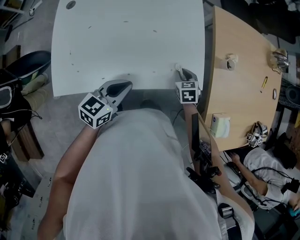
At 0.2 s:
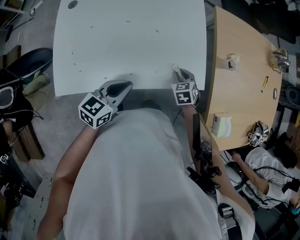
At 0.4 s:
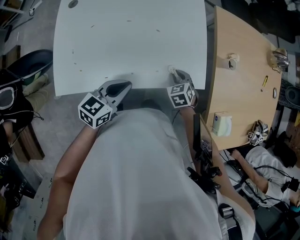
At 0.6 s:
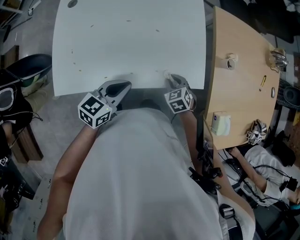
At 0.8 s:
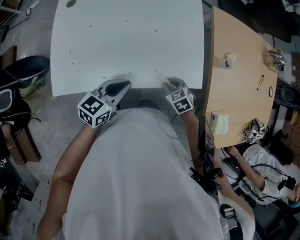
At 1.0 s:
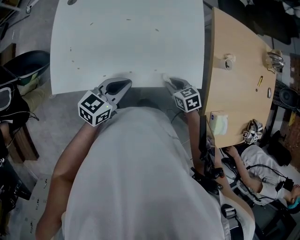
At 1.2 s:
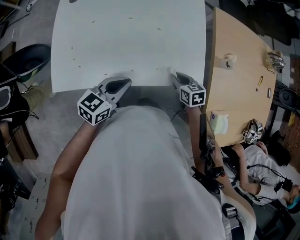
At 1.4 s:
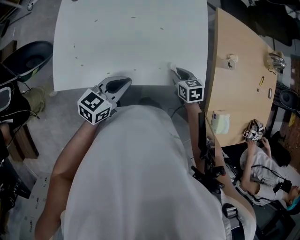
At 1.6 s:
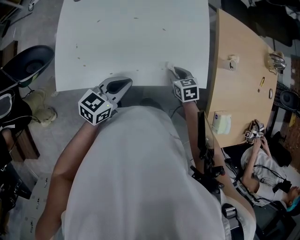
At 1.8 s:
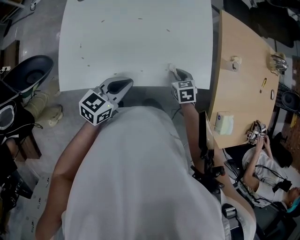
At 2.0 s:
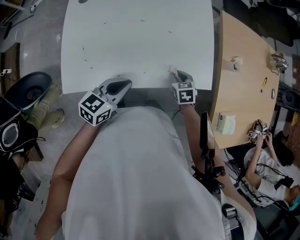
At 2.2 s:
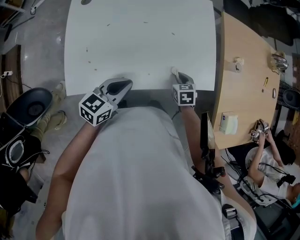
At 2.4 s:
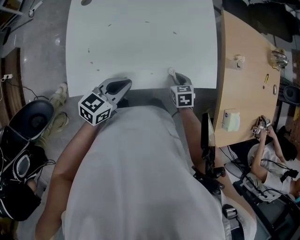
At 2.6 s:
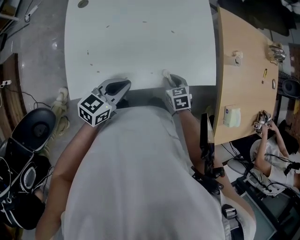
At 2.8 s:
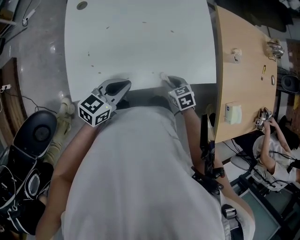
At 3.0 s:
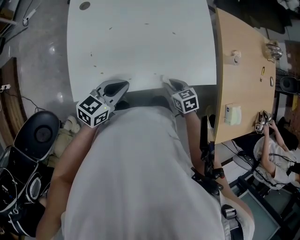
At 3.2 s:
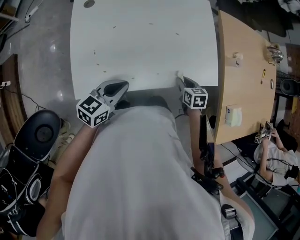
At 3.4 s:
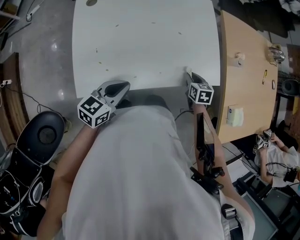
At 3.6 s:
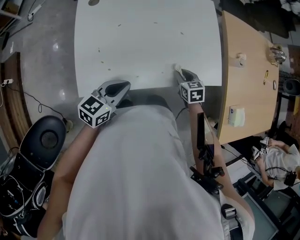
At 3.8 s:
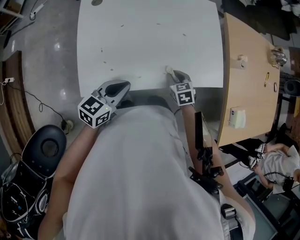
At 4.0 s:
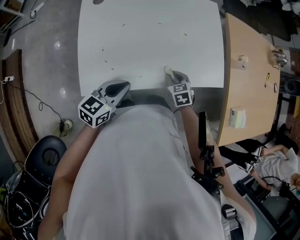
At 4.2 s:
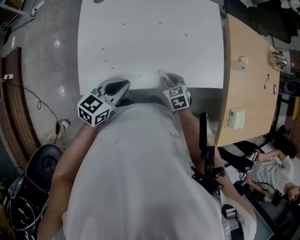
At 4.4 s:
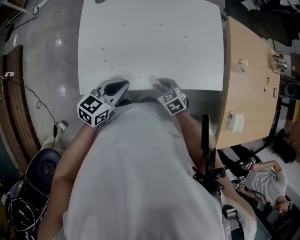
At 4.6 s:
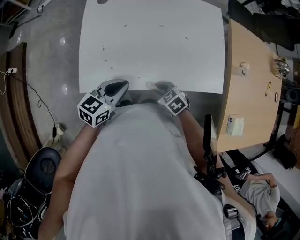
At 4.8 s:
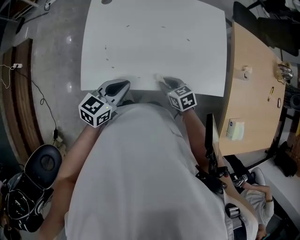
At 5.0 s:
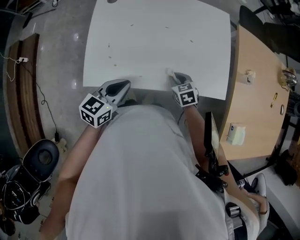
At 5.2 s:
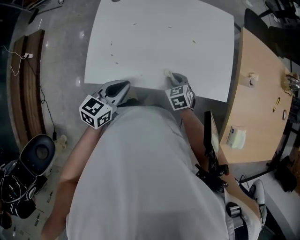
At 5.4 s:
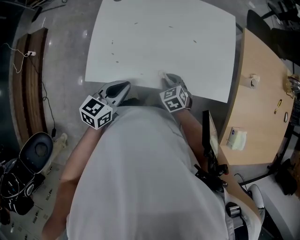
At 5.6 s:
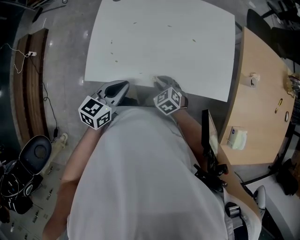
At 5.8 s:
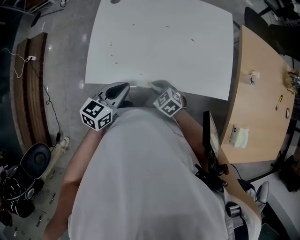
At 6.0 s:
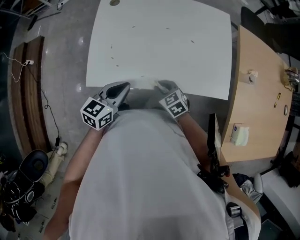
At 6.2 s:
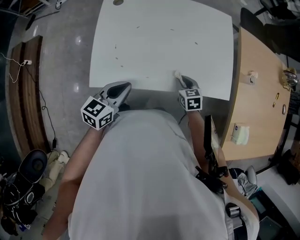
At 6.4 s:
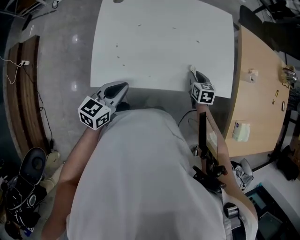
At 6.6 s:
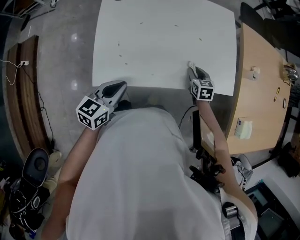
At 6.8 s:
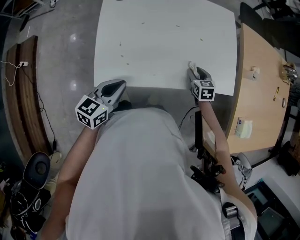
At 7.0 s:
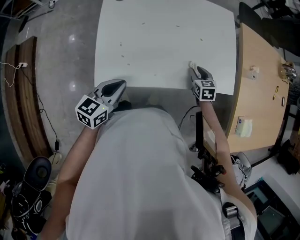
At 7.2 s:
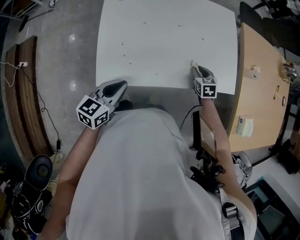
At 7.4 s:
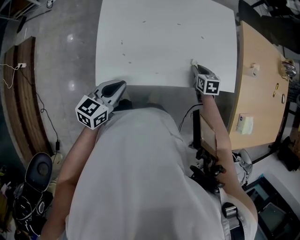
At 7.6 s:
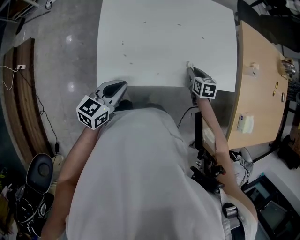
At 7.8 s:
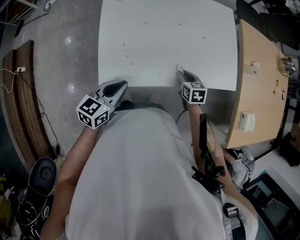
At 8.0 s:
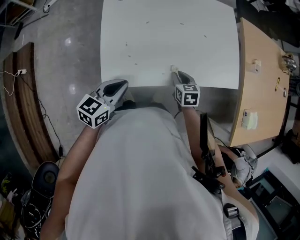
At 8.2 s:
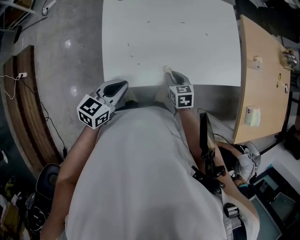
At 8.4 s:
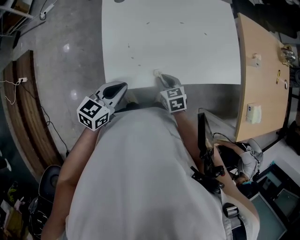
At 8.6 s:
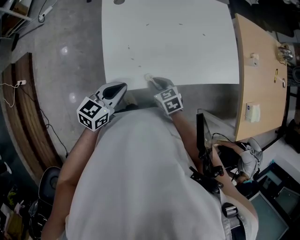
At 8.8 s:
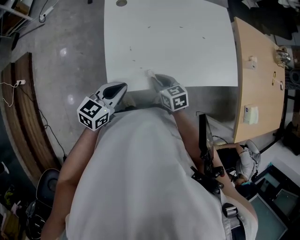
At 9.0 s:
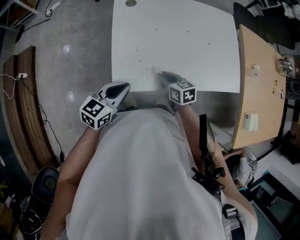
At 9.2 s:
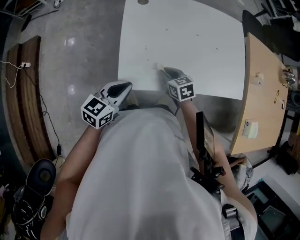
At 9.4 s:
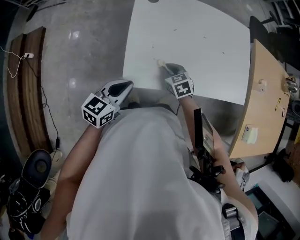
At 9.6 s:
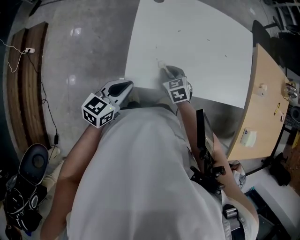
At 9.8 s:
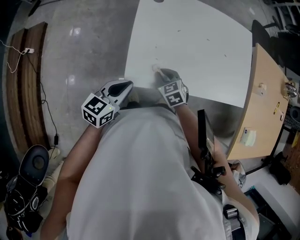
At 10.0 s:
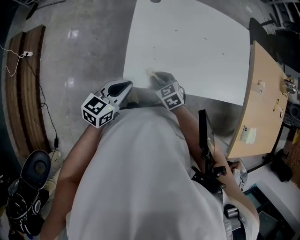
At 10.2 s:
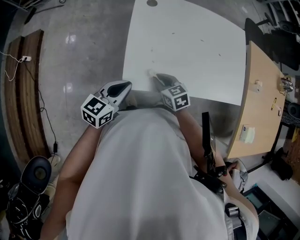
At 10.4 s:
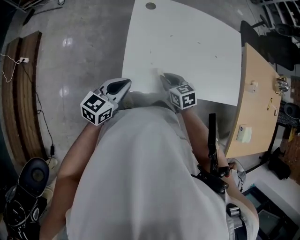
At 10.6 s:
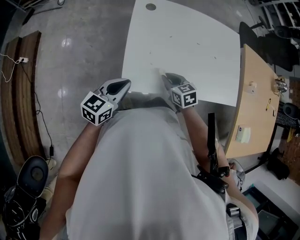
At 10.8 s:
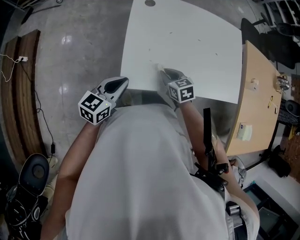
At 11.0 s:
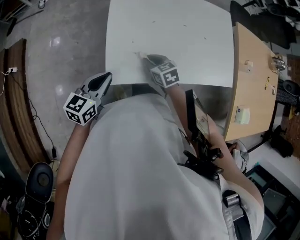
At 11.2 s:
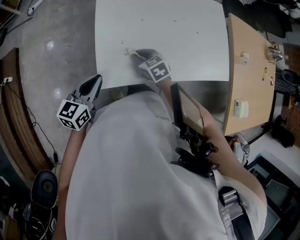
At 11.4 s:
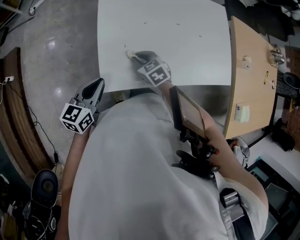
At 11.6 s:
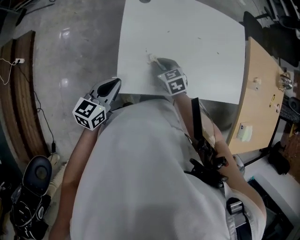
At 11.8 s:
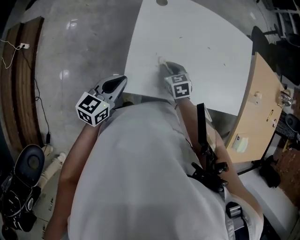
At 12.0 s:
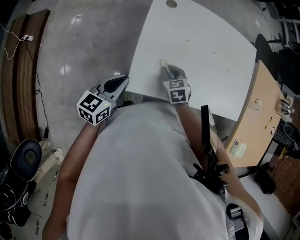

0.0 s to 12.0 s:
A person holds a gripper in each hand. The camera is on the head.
0.0 to 1.6 s: The right gripper travels to the left by approximately 5 cm.
1.6 to 3.0 s: The right gripper is displaced backward and to the left by approximately 10 cm, while the left gripper moves to the left, about 10 cm.
3.0 to 4.4 s: The right gripper shifts roughly 10 cm to the left.
4.4 to 6.0 s: The right gripper moves some 5 cm to the right and comes back.
6.0 to 7.6 s: The left gripper moves roughly 10 cm. Meanwhile the right gripper moves about 15 cm, and turns by about 40 degrees.
7.6 to 9.0 s: The right gripper shifts roughly 20 cm to the left, and rotates about 20 degrees, while the left gripper is displaced to the left by roughly 5 cm.
10.4 to 12.0 s: The right gripper heads forward, covering approximately 5 cm.

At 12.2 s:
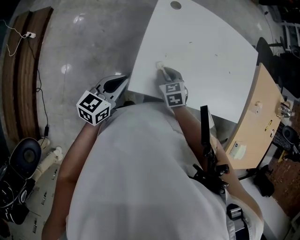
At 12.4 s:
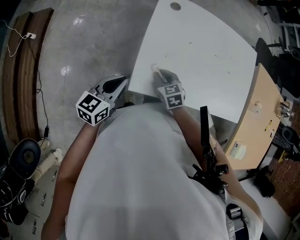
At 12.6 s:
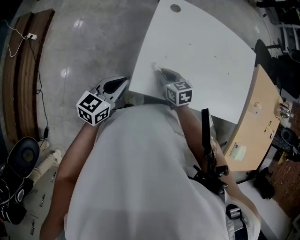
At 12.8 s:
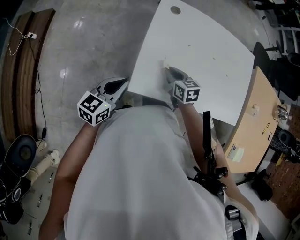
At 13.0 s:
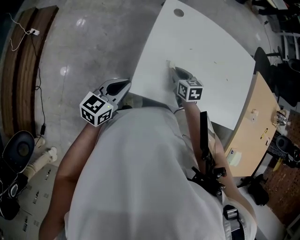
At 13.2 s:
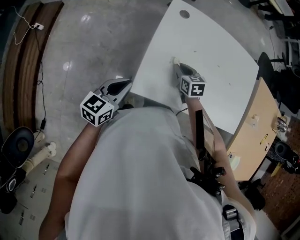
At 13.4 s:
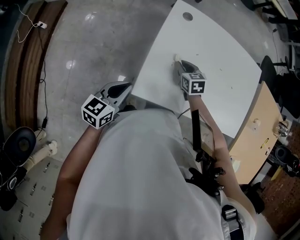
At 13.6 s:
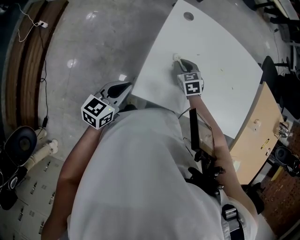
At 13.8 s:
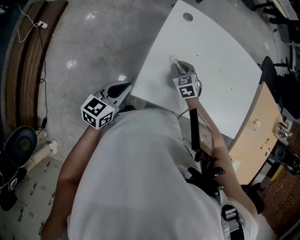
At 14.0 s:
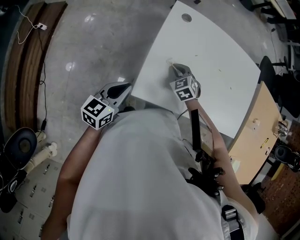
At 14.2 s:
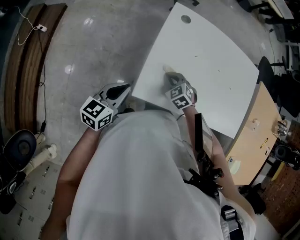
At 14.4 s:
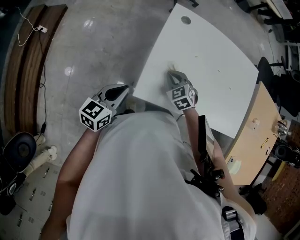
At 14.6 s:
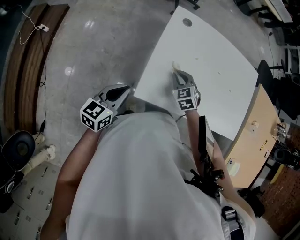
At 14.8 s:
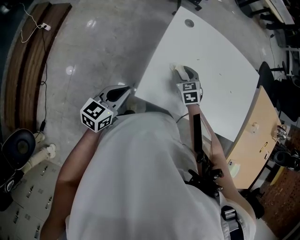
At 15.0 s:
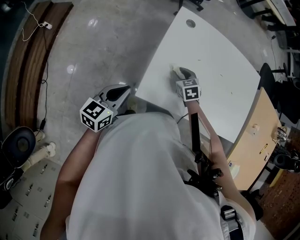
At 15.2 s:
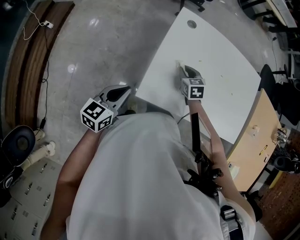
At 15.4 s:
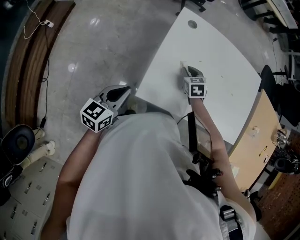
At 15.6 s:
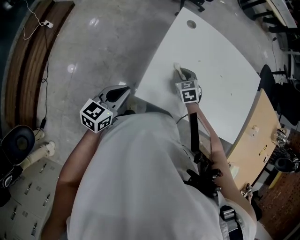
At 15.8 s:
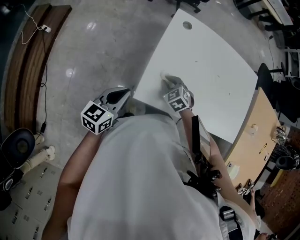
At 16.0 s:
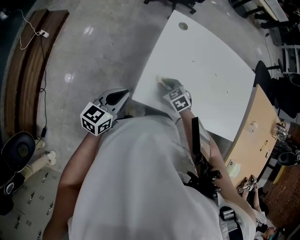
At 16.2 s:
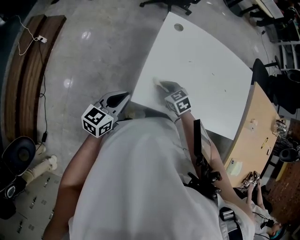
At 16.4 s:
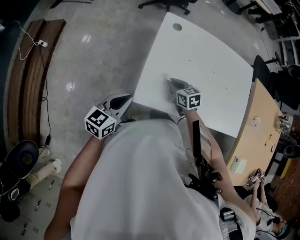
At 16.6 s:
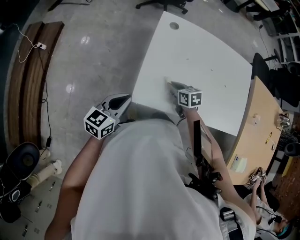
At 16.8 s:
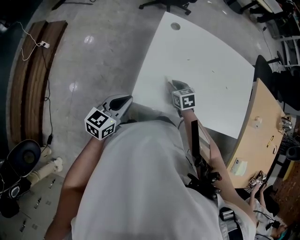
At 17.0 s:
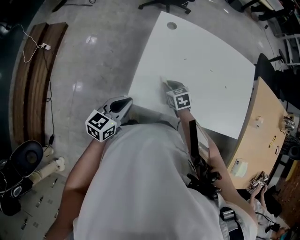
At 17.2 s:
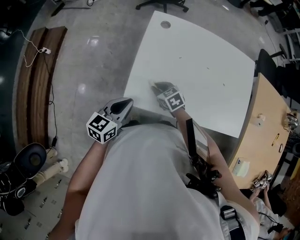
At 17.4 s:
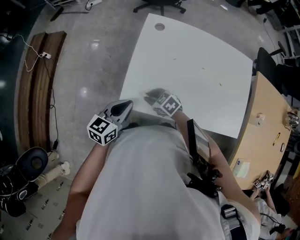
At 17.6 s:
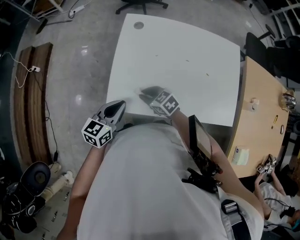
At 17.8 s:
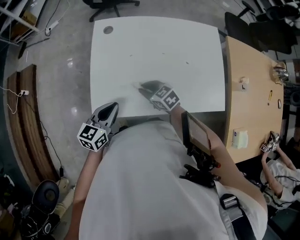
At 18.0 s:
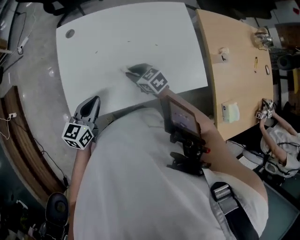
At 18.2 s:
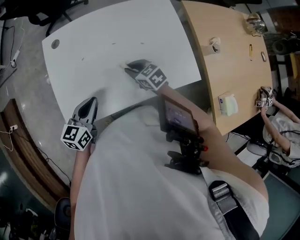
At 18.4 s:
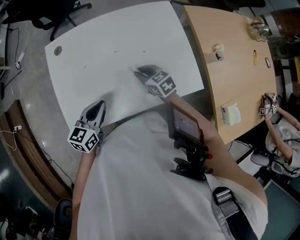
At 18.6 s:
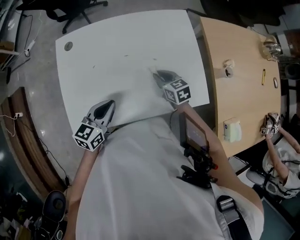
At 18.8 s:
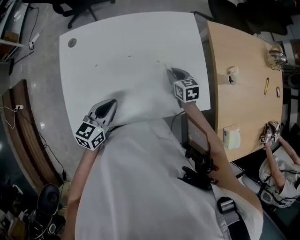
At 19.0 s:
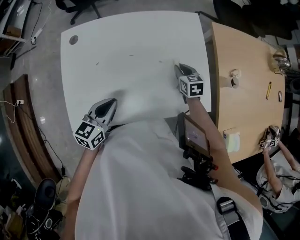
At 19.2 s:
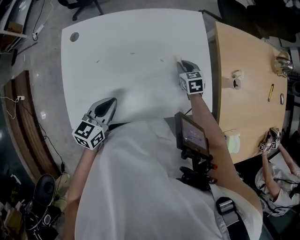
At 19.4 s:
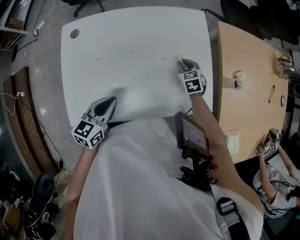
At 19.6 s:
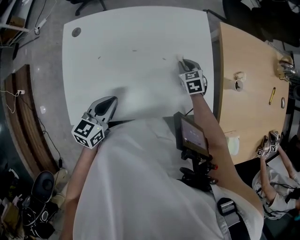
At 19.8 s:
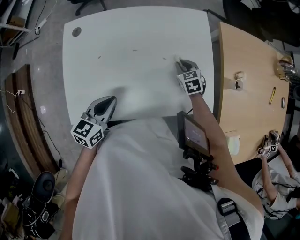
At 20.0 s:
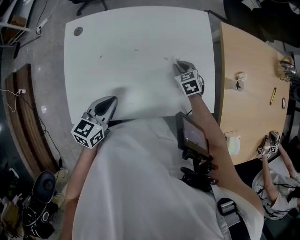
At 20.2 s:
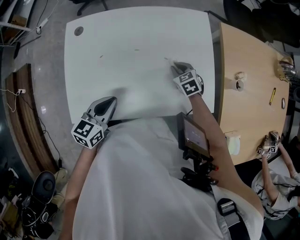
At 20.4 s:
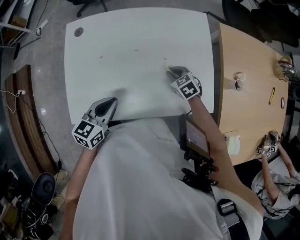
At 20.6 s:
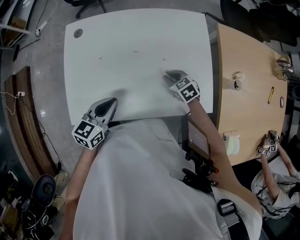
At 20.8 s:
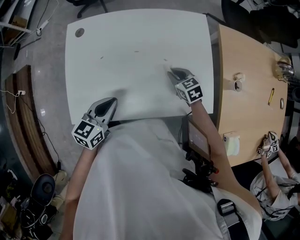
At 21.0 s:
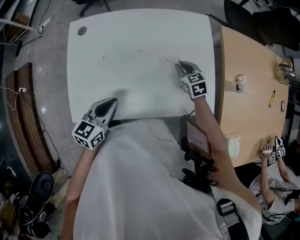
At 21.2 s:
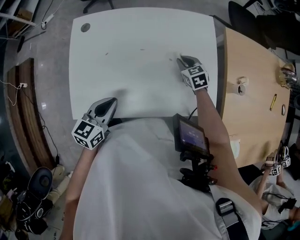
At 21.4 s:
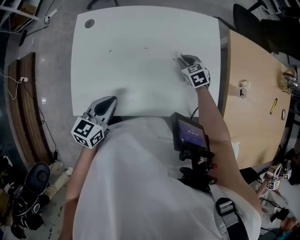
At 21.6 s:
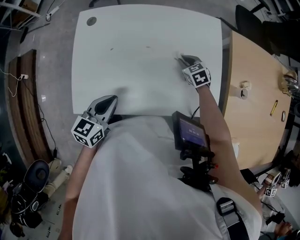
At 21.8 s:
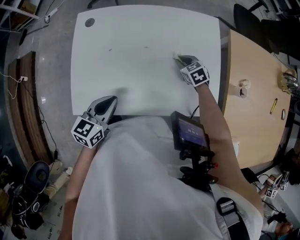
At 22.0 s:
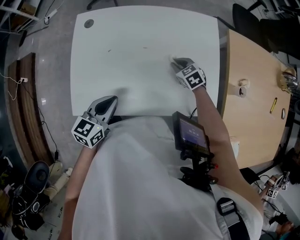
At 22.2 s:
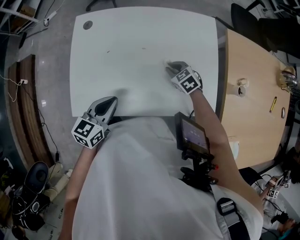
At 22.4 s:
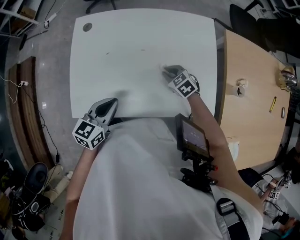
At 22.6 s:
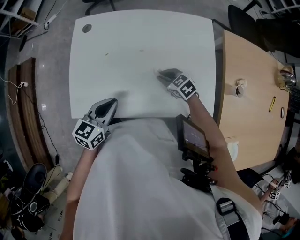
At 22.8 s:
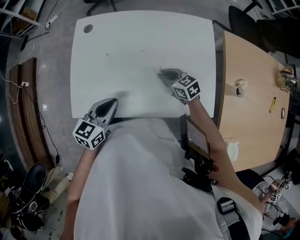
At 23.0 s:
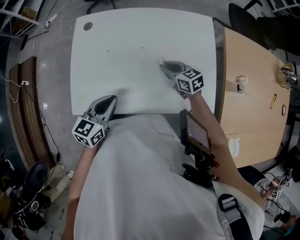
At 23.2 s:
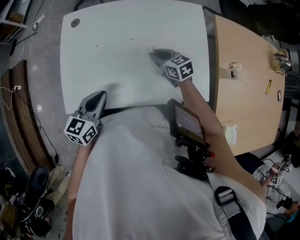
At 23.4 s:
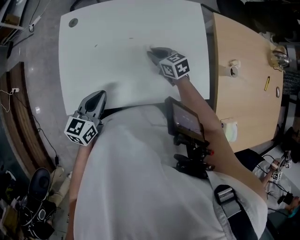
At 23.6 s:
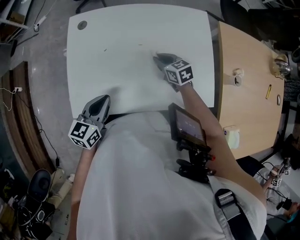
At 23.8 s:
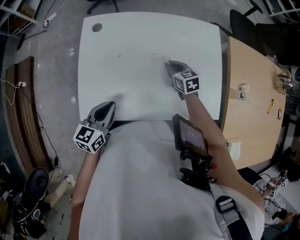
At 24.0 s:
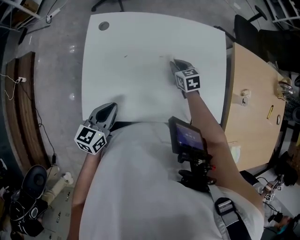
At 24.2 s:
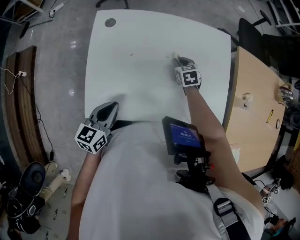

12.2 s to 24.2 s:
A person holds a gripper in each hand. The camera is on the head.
12.2 to 13.8 s: The right gripper travels forward by about 10 cm.
13.8 to 15.2 s: The right gripper goes backward and returns, about 5 cm each way.
15.2 to 16.6 s: The right gripper shifts about 10 cm backward, and swivels approximately 20 degrees.
16.6 to 18.2 s: The right gripper moves roughly 20 cm. The left gripper ends up some 25 cm from where it was.
18.2 to 19.8 s: The right gripper shifts approximately 20 cm to the right and forward, and changes its angle by roughly 20 degrees. The left gripper goes roughly 5 cm to the right.
19.8 to 21.2 s: The right gripper reaches roughly 5 cm backward, then returns.
21.2 to 22.6 s: The right gripper goes about 15 cm to the left and backward, and turns by about 20 degrees.
22.6 to 24.2 s: The left gripper moves to the left, approximately 10 cm. The right gripper shifts some 10 cm forward, and changes its angle by some 30 degrees.
